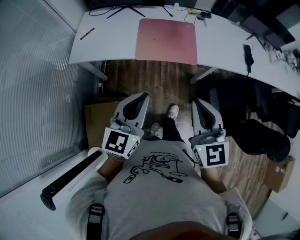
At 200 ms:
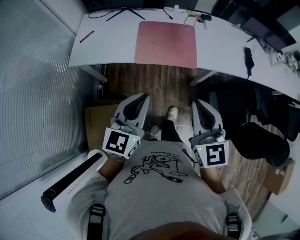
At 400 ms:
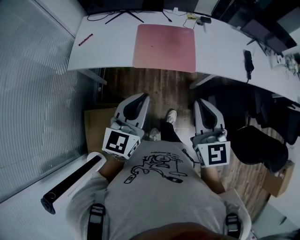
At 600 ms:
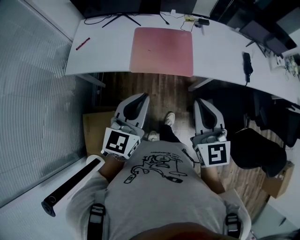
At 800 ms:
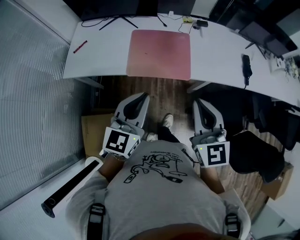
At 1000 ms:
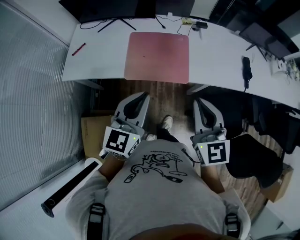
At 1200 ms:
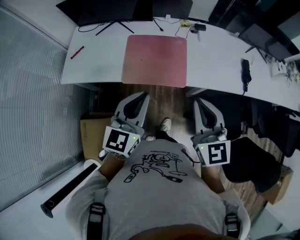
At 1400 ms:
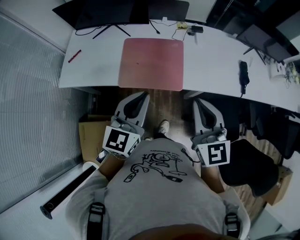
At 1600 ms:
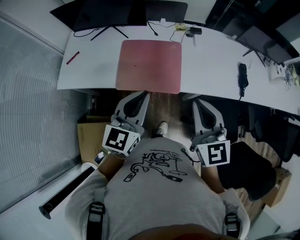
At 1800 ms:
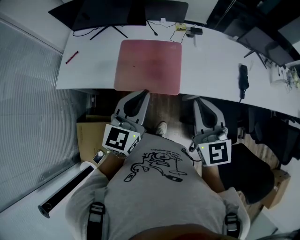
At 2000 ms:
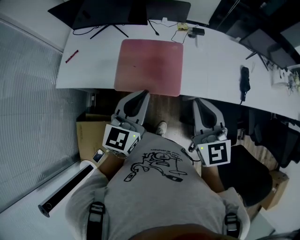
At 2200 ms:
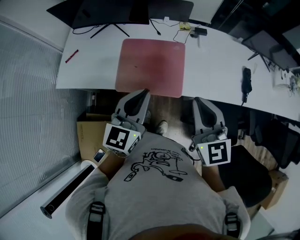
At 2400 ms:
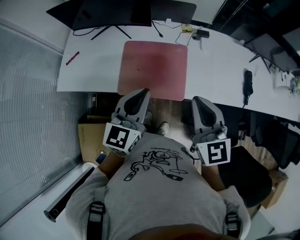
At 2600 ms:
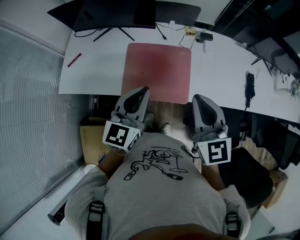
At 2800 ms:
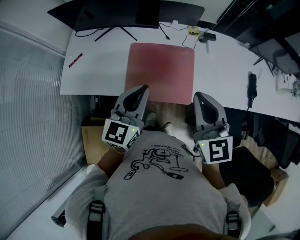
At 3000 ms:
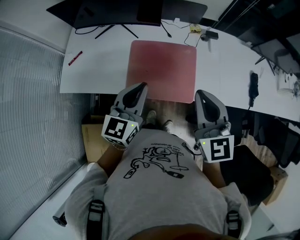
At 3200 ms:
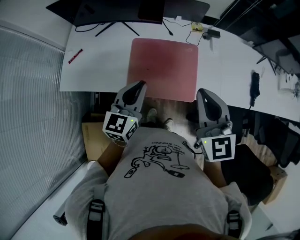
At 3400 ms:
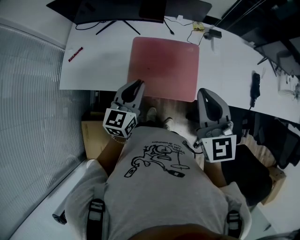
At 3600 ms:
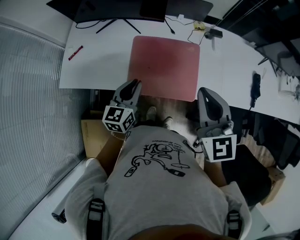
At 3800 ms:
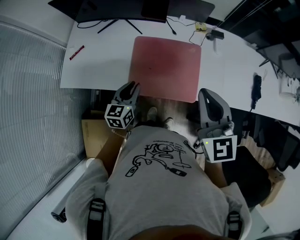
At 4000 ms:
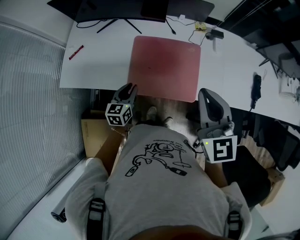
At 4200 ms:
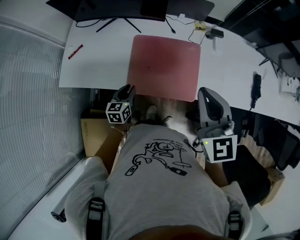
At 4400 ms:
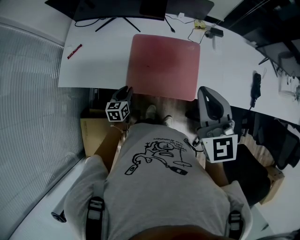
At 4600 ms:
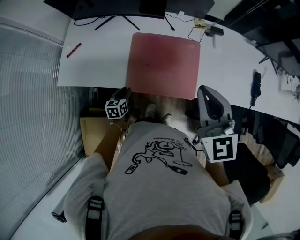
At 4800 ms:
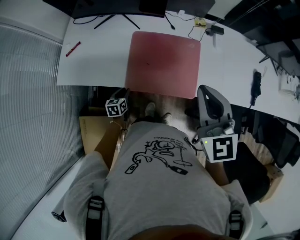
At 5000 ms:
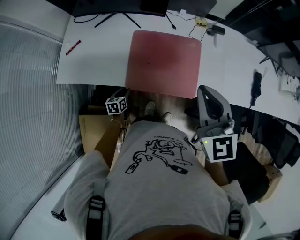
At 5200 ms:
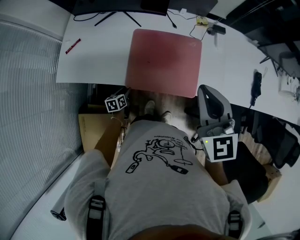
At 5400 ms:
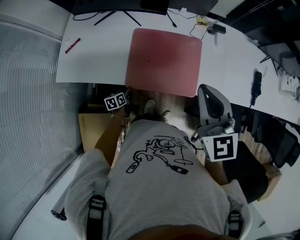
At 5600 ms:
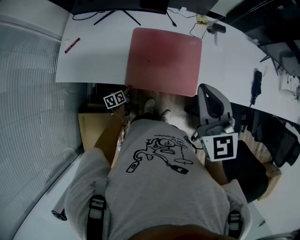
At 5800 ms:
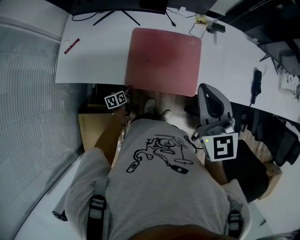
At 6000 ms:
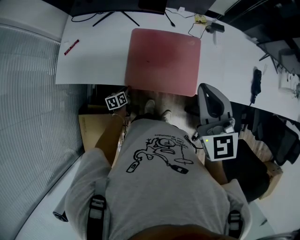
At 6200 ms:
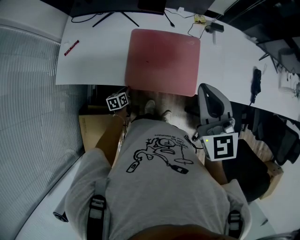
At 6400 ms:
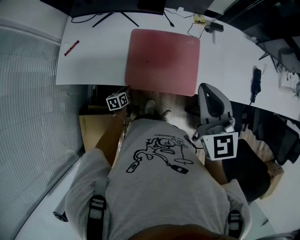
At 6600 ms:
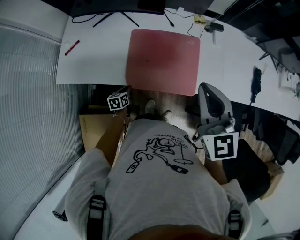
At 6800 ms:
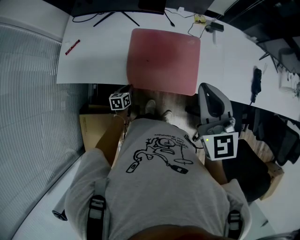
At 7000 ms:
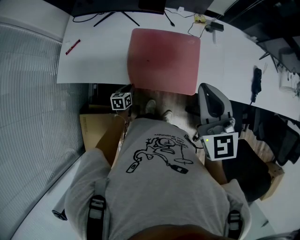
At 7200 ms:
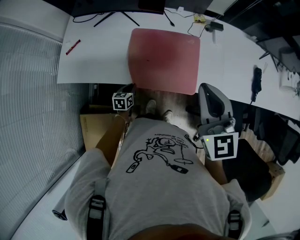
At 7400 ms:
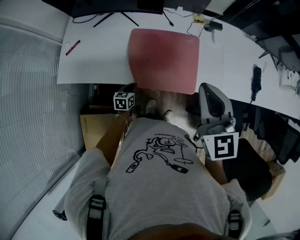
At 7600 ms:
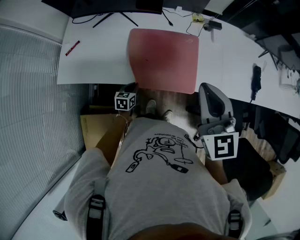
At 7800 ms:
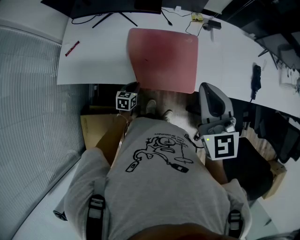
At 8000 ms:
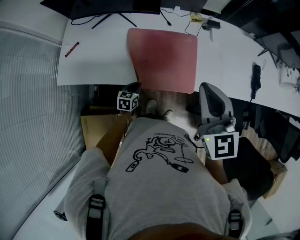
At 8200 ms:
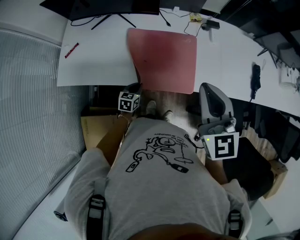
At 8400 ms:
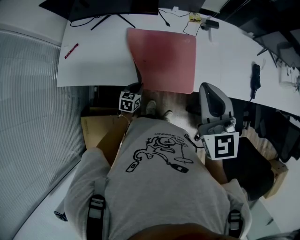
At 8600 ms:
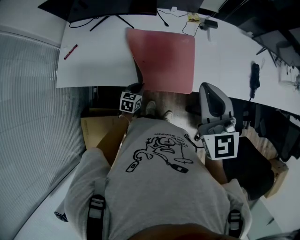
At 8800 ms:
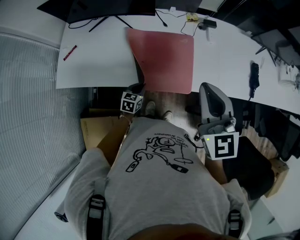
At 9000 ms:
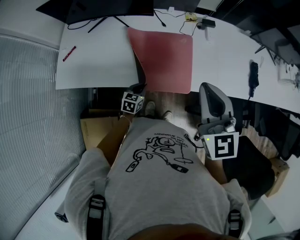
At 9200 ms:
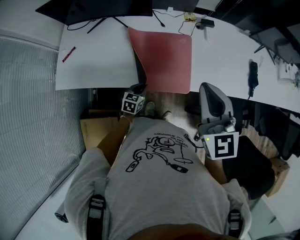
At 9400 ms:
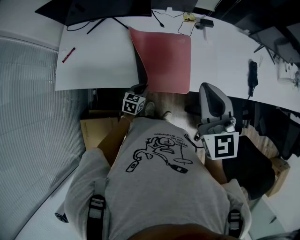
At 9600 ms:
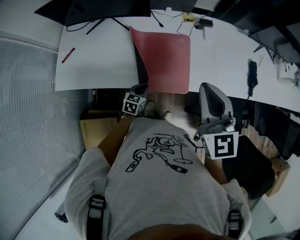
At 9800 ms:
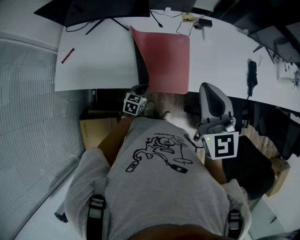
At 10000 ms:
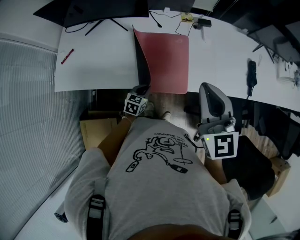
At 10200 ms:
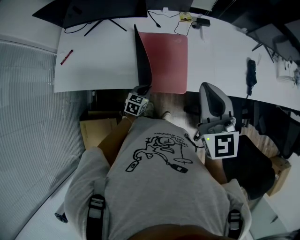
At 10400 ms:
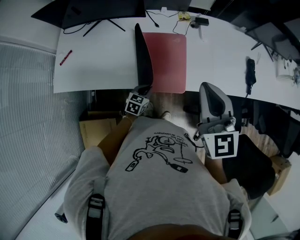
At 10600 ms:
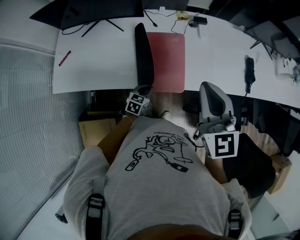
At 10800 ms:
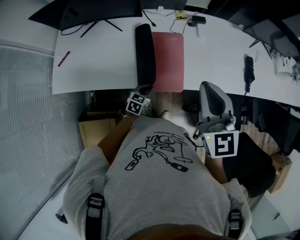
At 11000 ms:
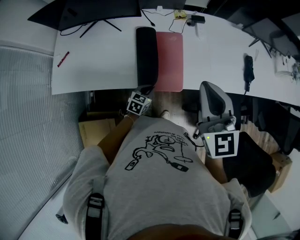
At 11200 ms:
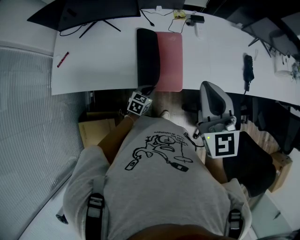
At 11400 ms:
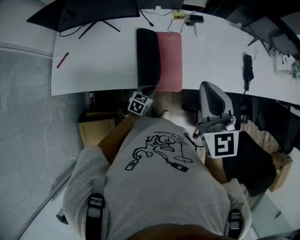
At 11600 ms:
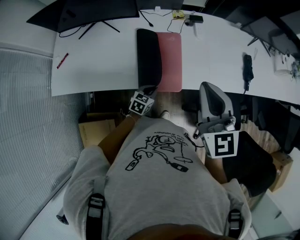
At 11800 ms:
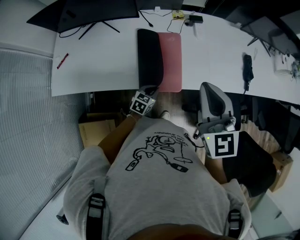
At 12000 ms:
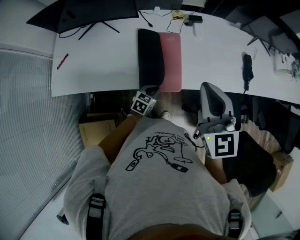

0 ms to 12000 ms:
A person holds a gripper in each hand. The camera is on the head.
0 ms to 1600 ms: The two grippers go some 30 cm forward and to the right.
1600 ms to 3000 ms: Both grippers travel together forward and to the left, roughly 20 cm.
3000 ms to 4400 ms: The left gripper is displaced downward and to the left by about 30 cm, and rotates approximately 30 degrees.
4400 ms to 6000 ms: The left gripper shifts about 15 cm downward, and changes its angle by some 20 degrees.
6000 ms to 7600 ms: The left gripper goes some 10 cm upward and to the right, and rotates about 30 degrees.
7600 ms to 9000 ms: The left gripper travels to the right by some 10 cm.
9000 ms to 10400 ms: The left gripper travels to the right by roughly 5 cm.
10400 ms to 12000 ms: The left gripper goes approximately 5 cm to the right.

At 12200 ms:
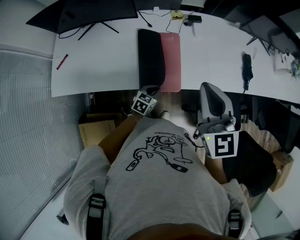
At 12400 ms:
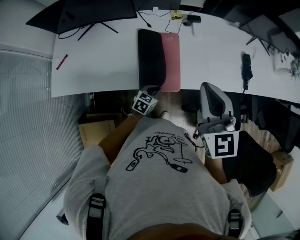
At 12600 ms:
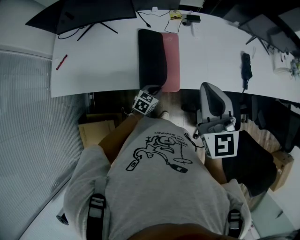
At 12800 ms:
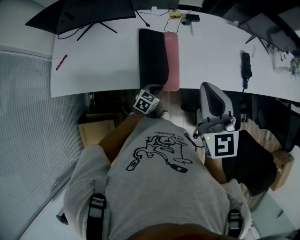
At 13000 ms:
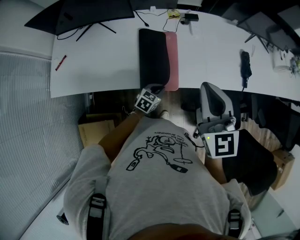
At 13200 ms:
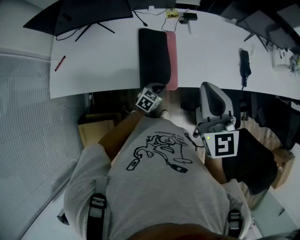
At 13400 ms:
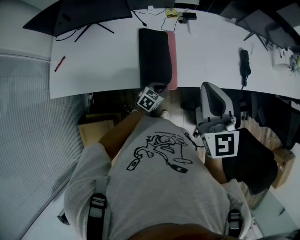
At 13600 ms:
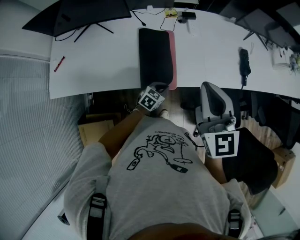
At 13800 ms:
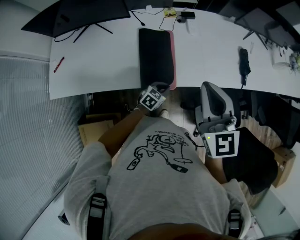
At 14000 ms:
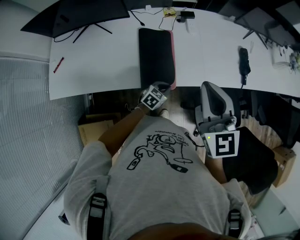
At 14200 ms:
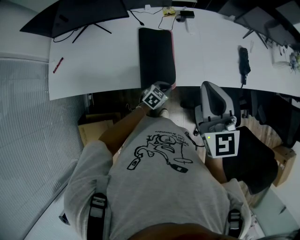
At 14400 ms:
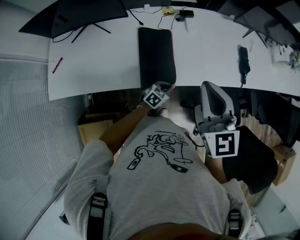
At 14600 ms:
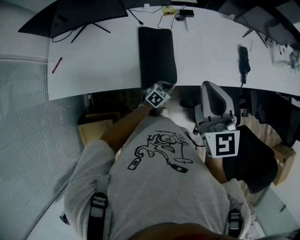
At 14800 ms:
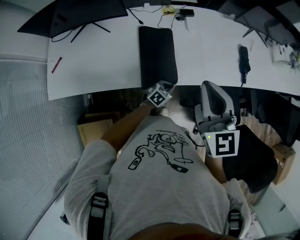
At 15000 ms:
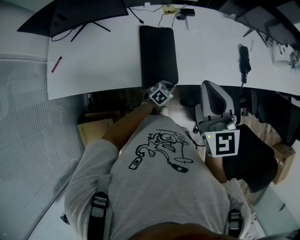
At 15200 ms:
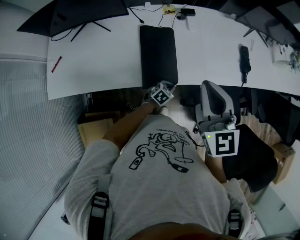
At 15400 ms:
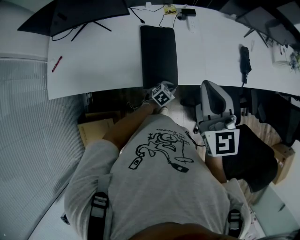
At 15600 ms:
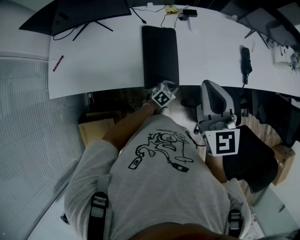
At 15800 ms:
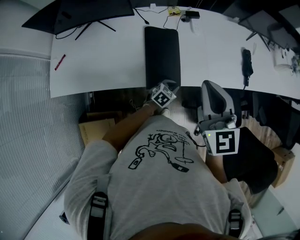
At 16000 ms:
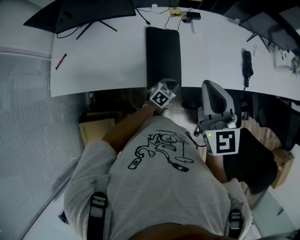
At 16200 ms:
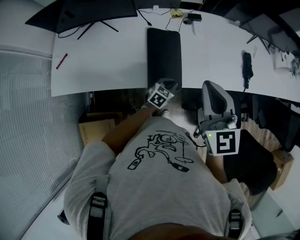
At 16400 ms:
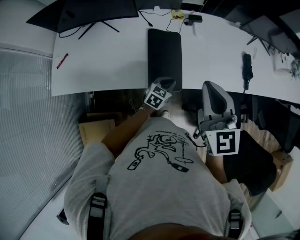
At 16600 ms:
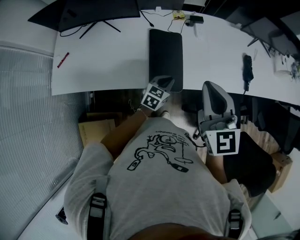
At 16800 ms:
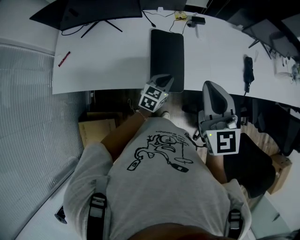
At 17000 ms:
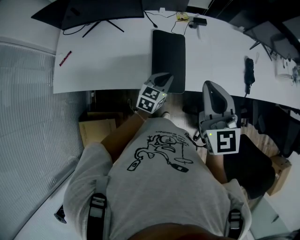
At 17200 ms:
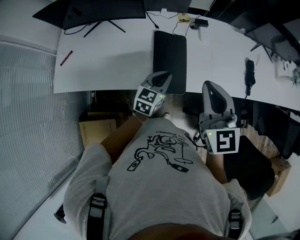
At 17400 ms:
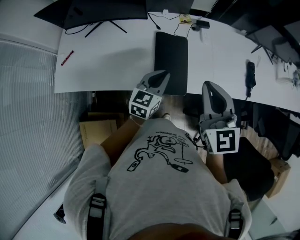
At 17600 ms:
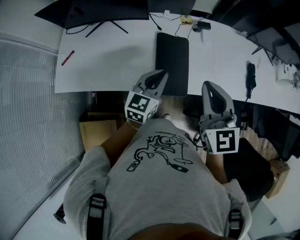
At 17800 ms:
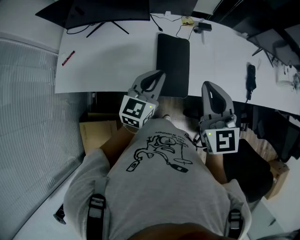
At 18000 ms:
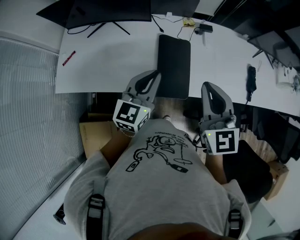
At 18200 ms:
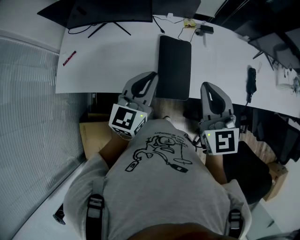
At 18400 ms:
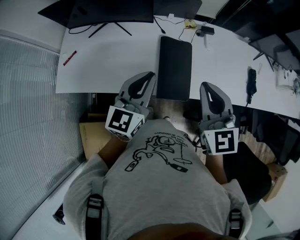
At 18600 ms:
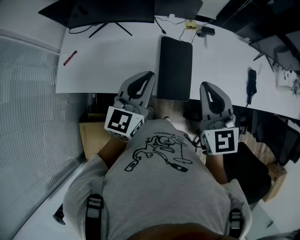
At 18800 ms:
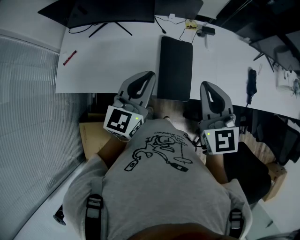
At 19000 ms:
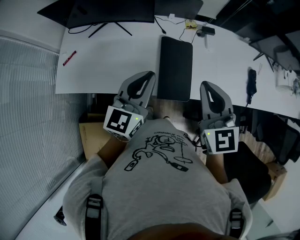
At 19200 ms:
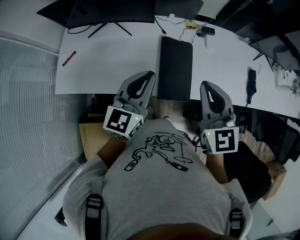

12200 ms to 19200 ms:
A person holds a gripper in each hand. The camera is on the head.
12200 ms to 13600 ms: The left gripper shifts some 5 cm to the right.
13600 ms to 15000 ms: The left gripper heads downward, covering approximately 5 cm.
15000 ms to 16400 ms: The left gripper travels upward and to the left by approximately 15 cm, and turns by about 20 degrees.
16400 ms to 17800 ms: The left gripper travels upward and to the left by about 25 cm, and swivels approximately 30 degrees, while the right gripper moves some 5 cm.
17800 ms to 19200 ms: The right gripper shifts by about 5 cm. The left gripper travels upward and to the left by approximately 10 cm.

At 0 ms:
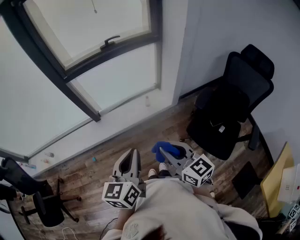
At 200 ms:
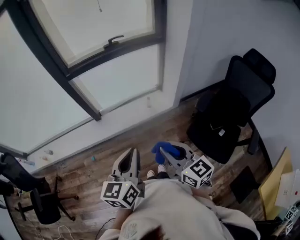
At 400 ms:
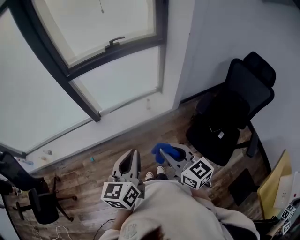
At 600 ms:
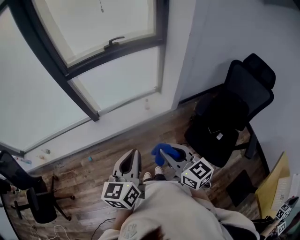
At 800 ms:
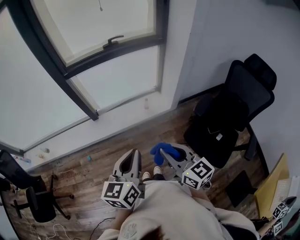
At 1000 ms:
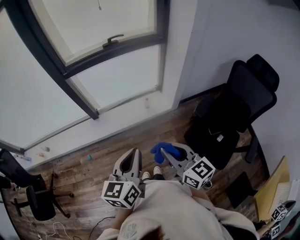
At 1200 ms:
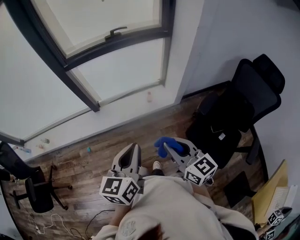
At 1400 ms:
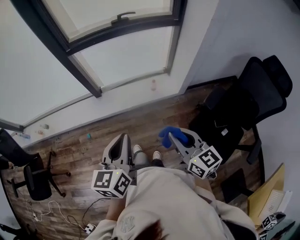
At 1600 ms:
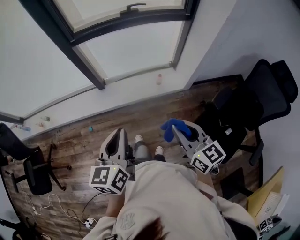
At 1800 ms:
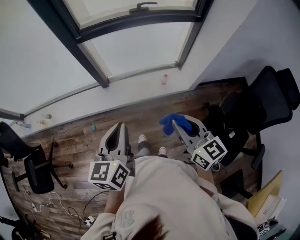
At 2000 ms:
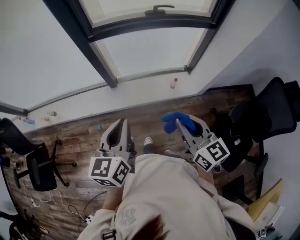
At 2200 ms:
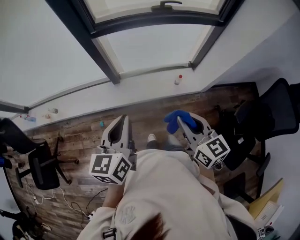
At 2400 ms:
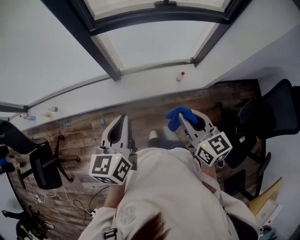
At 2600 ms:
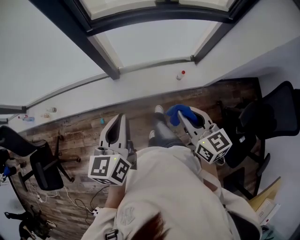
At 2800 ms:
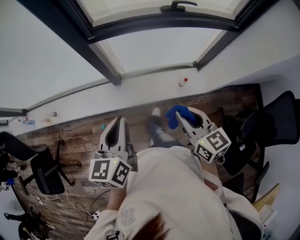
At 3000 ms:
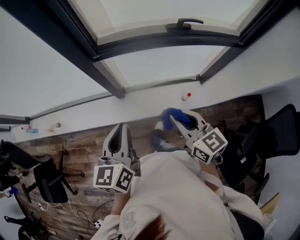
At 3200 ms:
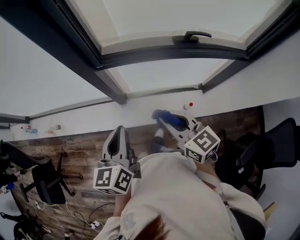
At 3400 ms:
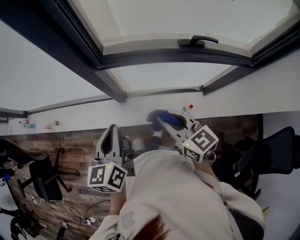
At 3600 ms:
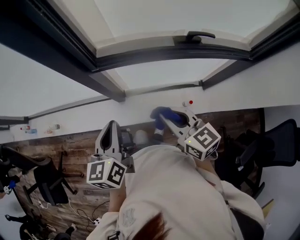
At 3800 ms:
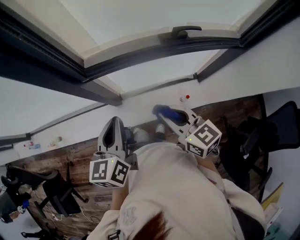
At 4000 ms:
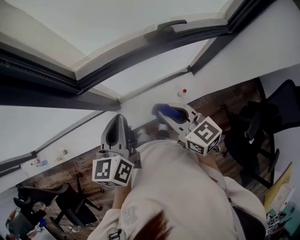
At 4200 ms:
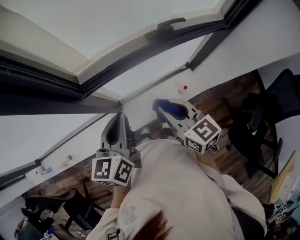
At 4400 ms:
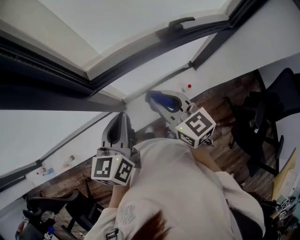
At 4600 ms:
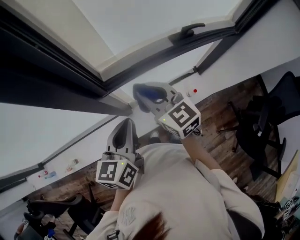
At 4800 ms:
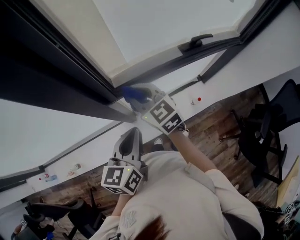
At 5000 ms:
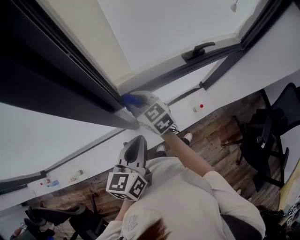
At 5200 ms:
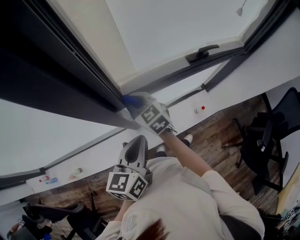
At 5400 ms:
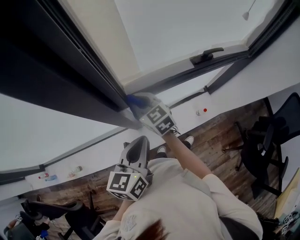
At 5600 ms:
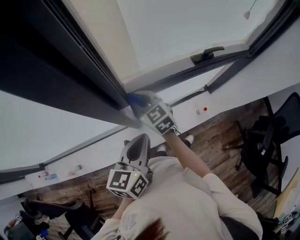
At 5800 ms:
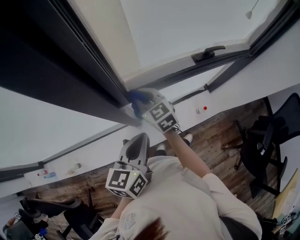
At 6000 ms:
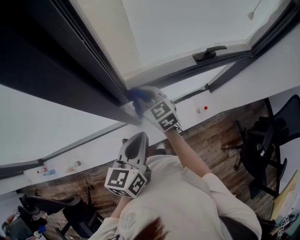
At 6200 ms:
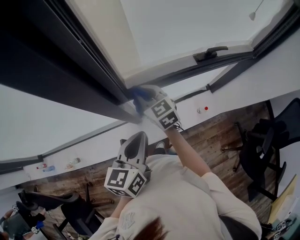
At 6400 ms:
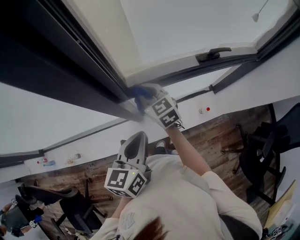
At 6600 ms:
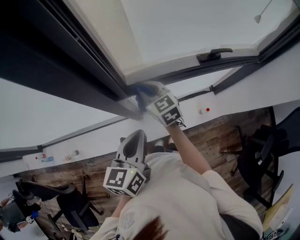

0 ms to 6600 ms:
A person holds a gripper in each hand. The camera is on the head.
0 ms to 1600 ms: The left gripper travels forward and to the left by some 10 cm. The right gripper is displaced forward by roughly 10 cm.
1600 ms to 3200 ms: Both grippers travel together forward, some 40 cm.
3200 ms to 5000 ms: The left gripper ends up about 15 cm from where it was, and changes its angle by some 30 degrees. Meanwhile the right gripper moves some 35 cm.
5000 ms to 6600 ms: There are only small adjustments of the grippers.
